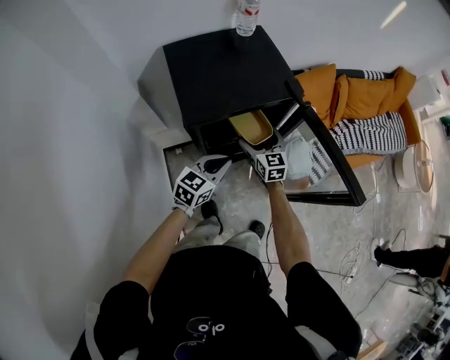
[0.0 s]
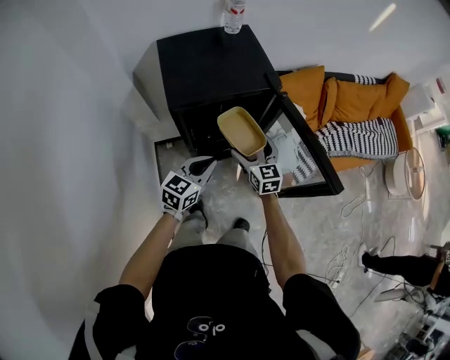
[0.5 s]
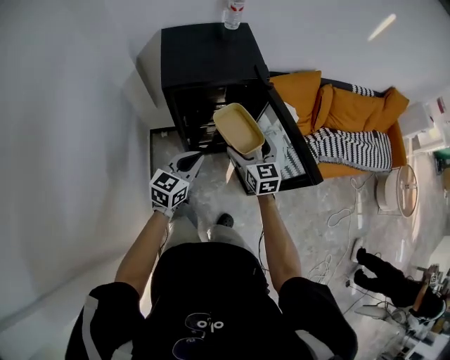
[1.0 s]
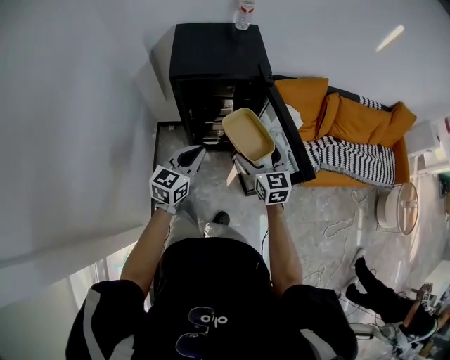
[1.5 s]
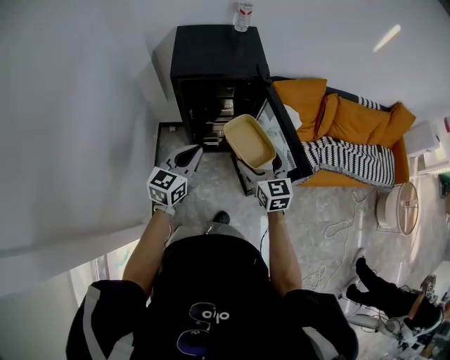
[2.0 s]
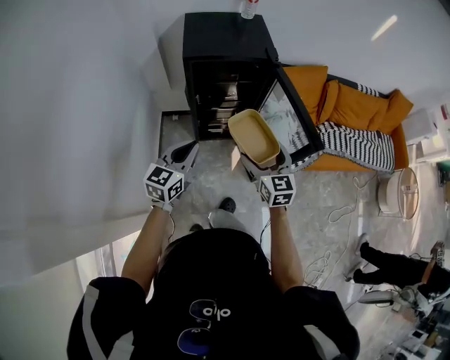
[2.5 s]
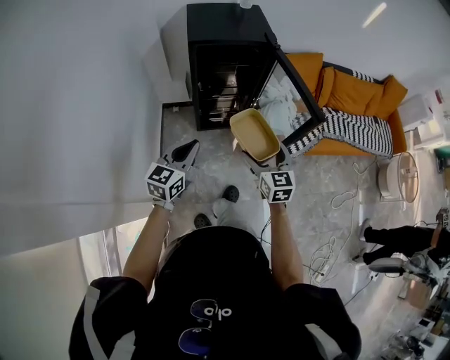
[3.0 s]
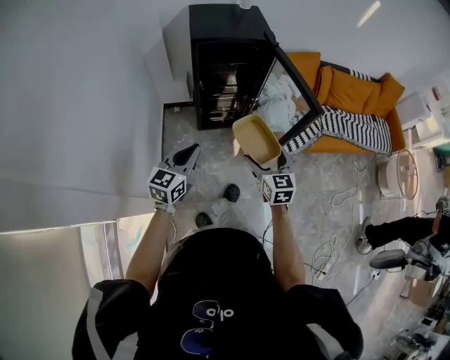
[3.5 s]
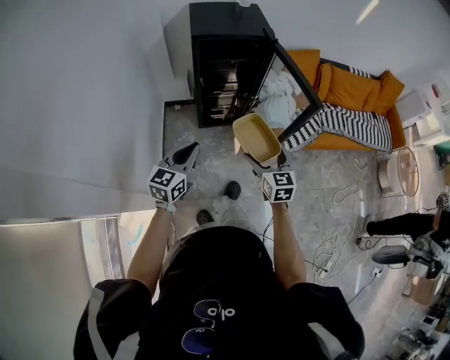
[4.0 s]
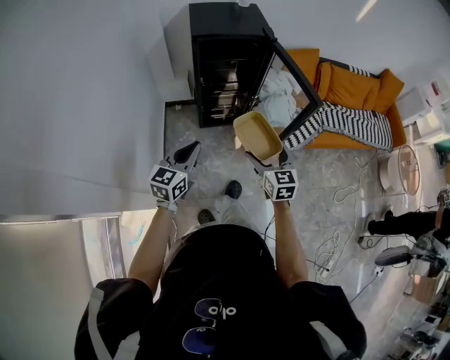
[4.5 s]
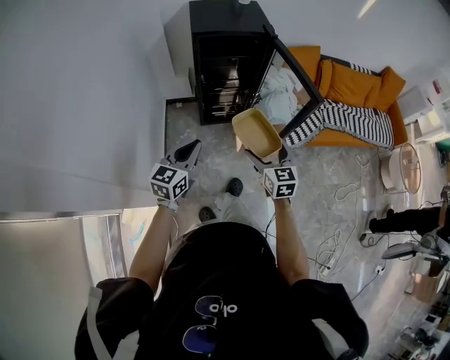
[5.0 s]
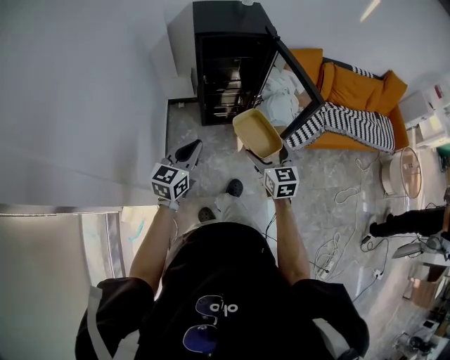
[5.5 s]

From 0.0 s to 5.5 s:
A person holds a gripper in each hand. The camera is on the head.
From 0.0 s to 2.0 s: The right gripper is displaced backward, to the right and upward by approximately 30 cm. The left gripper moves backward, upward and to the right, some 20 cm, and changes its angle by some 30 degrees.
From 2.0 s to 3.5 s: Both grippers travel together backward, about 20 cm.
From 3.5 s to 5.5 s: The grippers make only small movements.

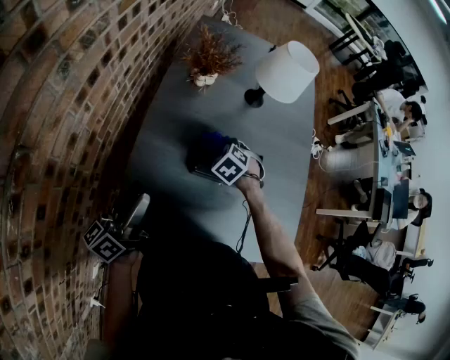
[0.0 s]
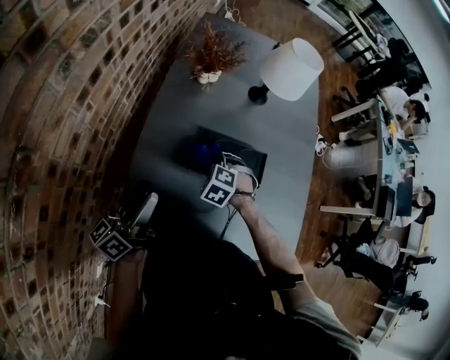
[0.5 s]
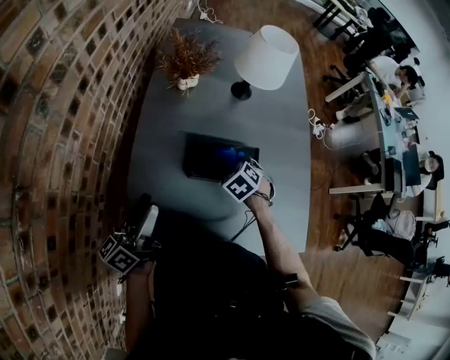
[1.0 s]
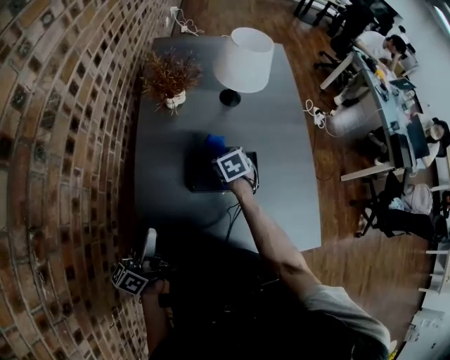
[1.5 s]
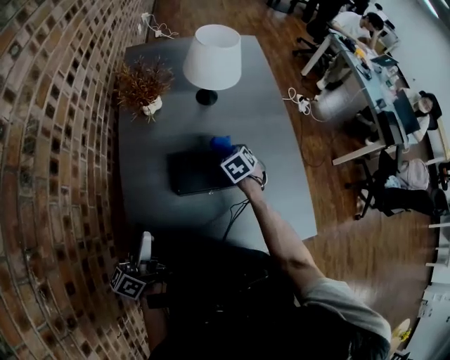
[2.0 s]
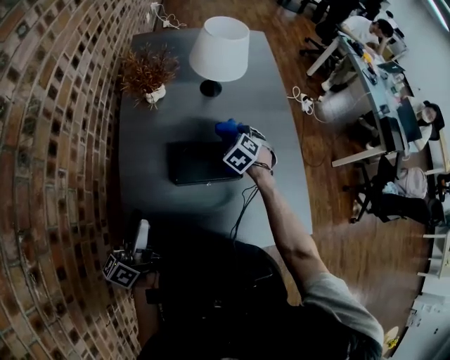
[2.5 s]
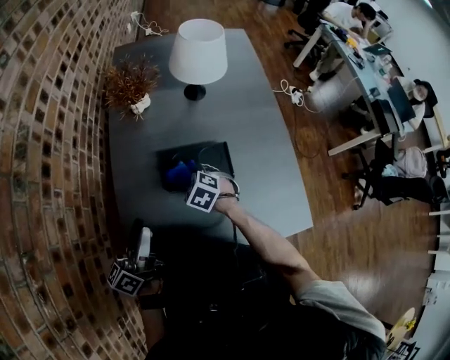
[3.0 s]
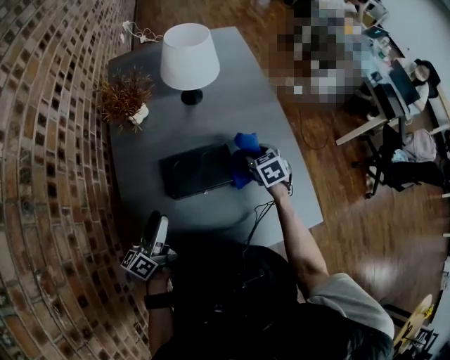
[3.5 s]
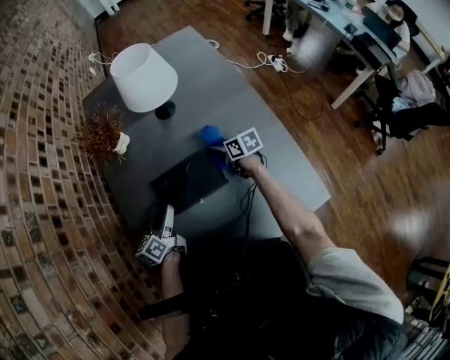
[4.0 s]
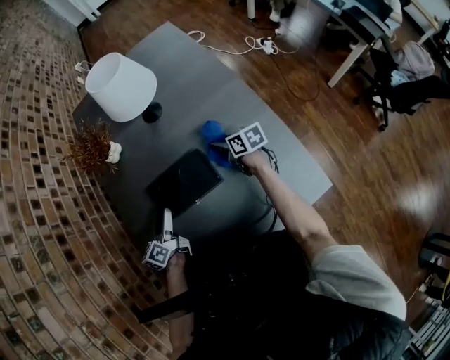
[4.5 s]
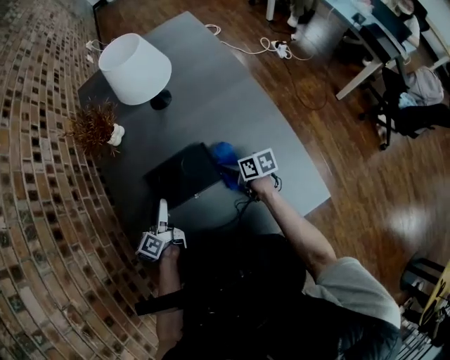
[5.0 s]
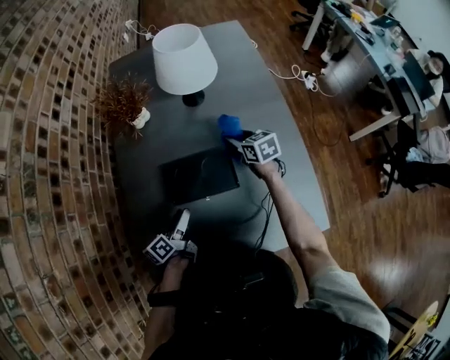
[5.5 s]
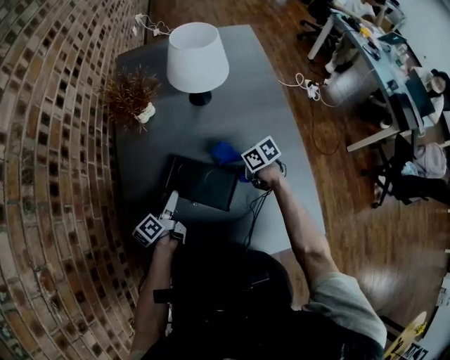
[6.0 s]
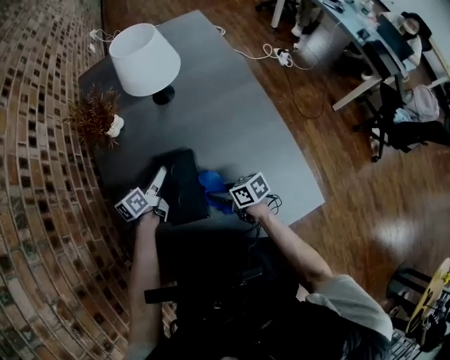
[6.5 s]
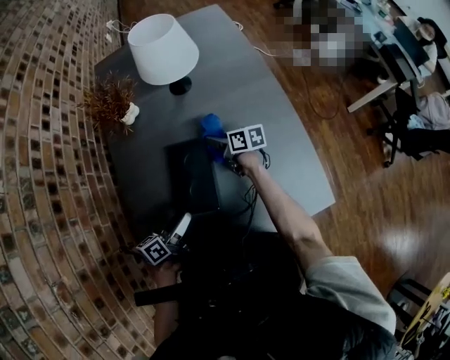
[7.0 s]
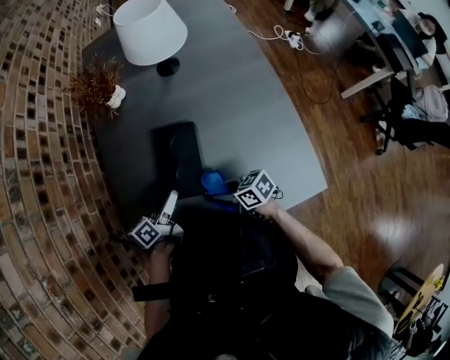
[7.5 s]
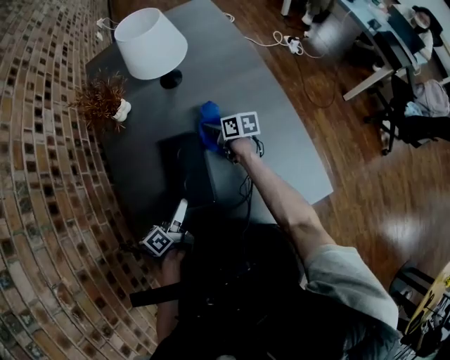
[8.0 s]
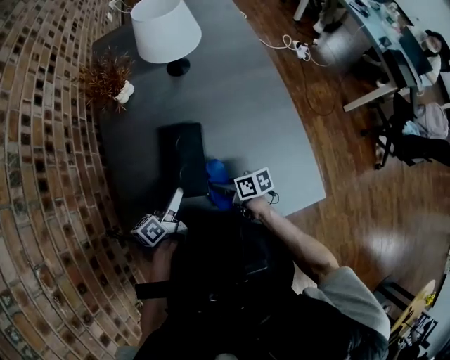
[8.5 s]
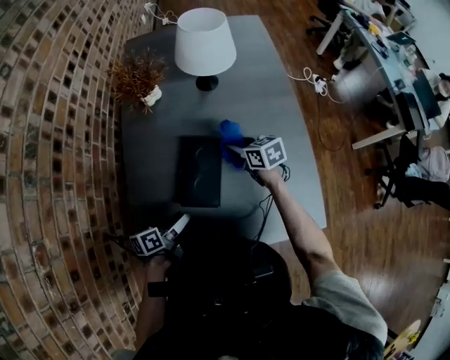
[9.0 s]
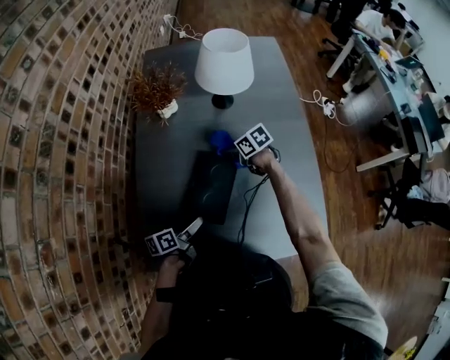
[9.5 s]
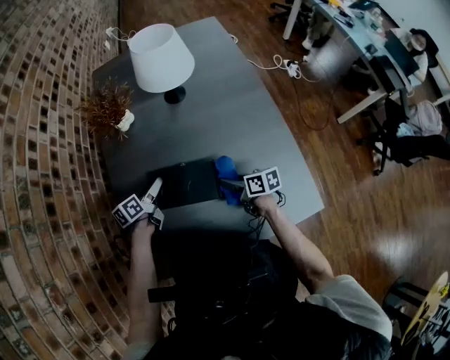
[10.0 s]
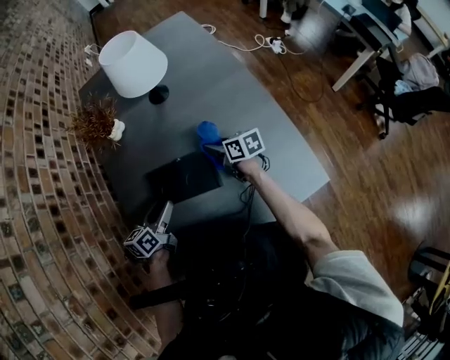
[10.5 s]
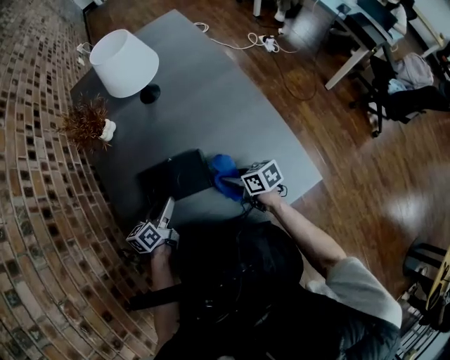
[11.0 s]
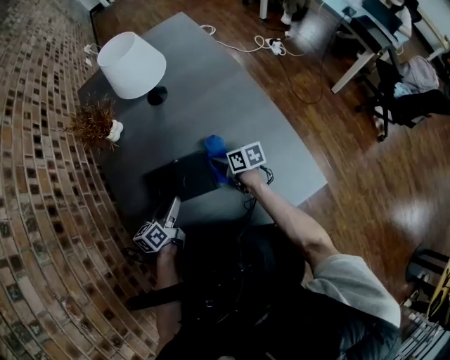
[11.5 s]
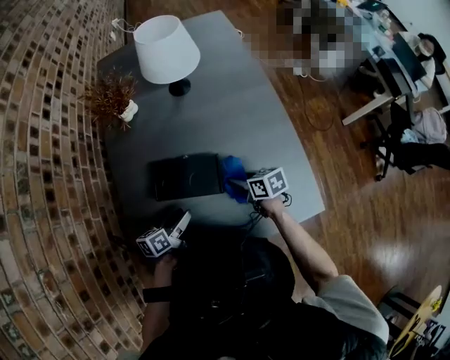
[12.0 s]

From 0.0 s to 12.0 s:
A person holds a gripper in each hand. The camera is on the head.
From 0.0 s to 2.0 s: The right gripper moves left and right over about 20 cm, changing direction 2 times, and turns by about 40 degrees.
From 2.0 s to 4.0 s: The right gripper moves left and right over approximately 25 cm, changing direction 2 times, and changes its angle by approximately 50 degrees, while the left gripper goes some 20 cm downward, forward and to the right, and rotates roughly 30 degrees.
From 4.0 s to 6.0 s: The left gripper swivels roughly 20 degrees, while the right gripper moves forward and backward over about 15 cm, changing direction 2 times, and rotates roughly 30 degrees.
From 6.0 s to 8.0 s: The right gripper swings forward and backward, approximately 25 cm each way, with 3 reversals, and swivels roughly 30 degrees, while the left gripper heads backward, covering approximately 10 cm.
From 8.0 s to 10.0 s: The left gripper shifts roughly 15 cm forward. The right gripper moves forward and backward over some 25 cm, changing direction 2 times.
From 10.0 s to 12.0 s: The right gripper goes forward and backward, some 15 cm each way, reversing 3 times. Meanwhile the left gripper shifts roughly 20 cm backward and to the right.

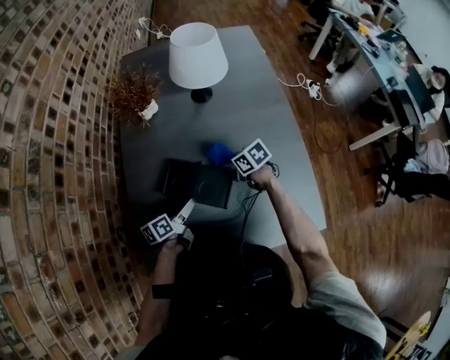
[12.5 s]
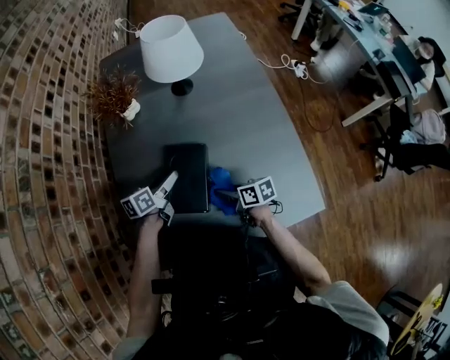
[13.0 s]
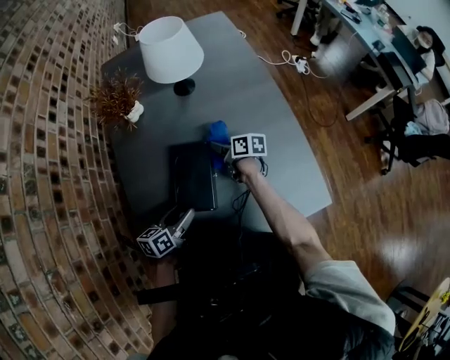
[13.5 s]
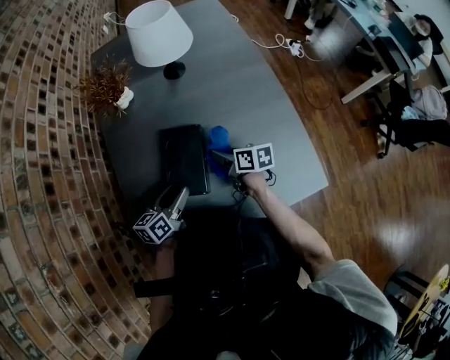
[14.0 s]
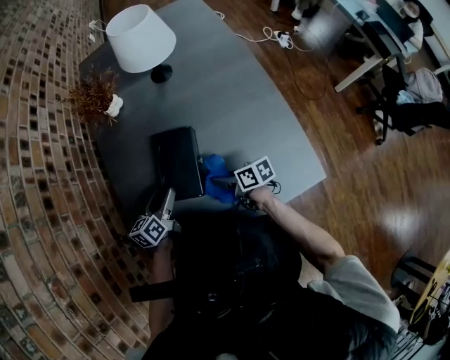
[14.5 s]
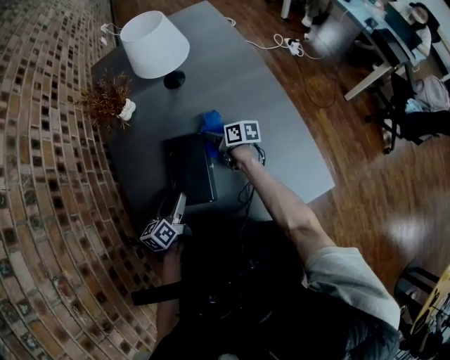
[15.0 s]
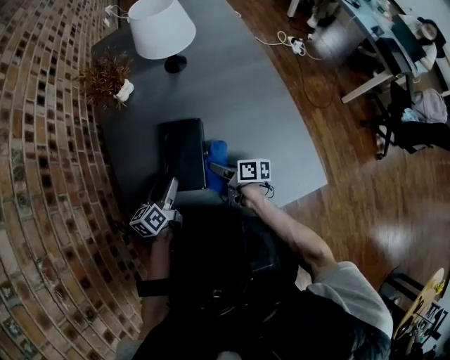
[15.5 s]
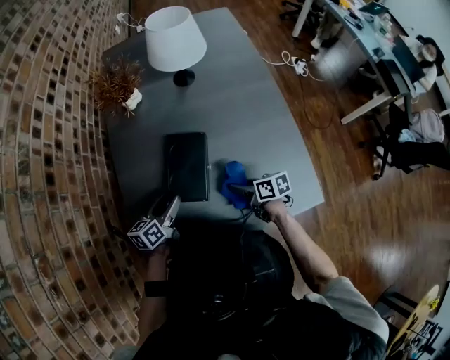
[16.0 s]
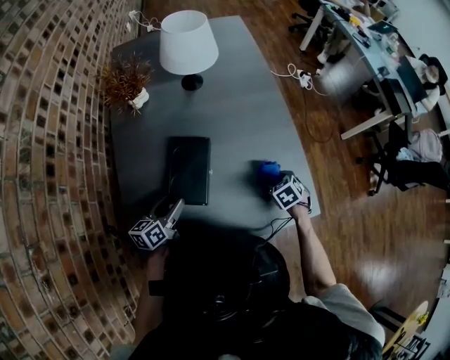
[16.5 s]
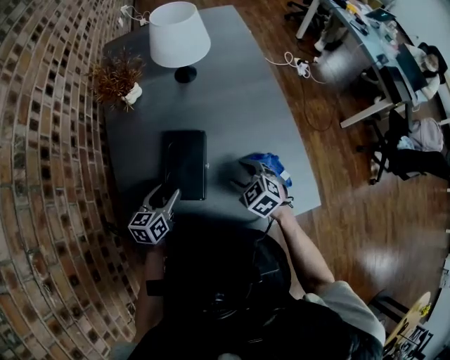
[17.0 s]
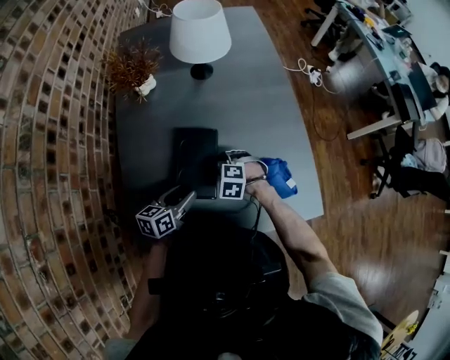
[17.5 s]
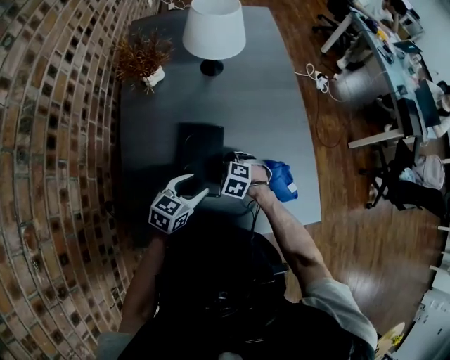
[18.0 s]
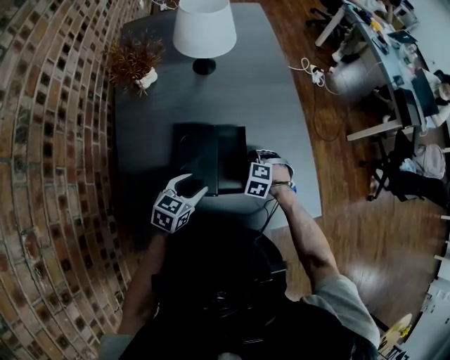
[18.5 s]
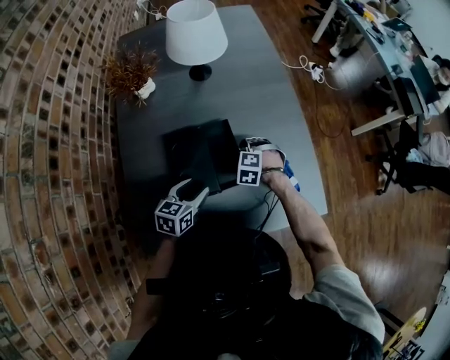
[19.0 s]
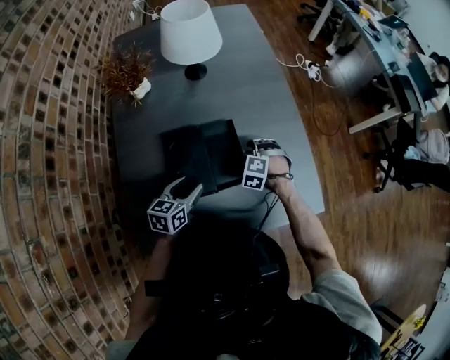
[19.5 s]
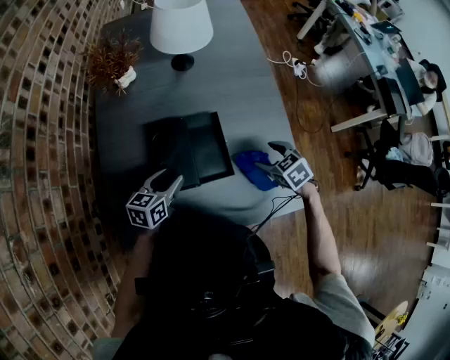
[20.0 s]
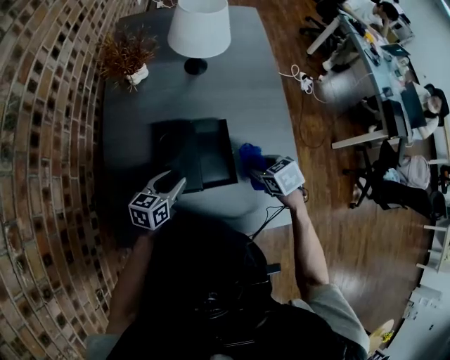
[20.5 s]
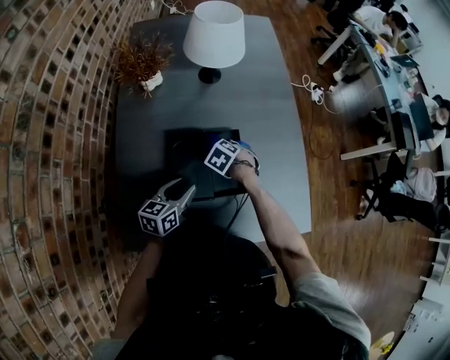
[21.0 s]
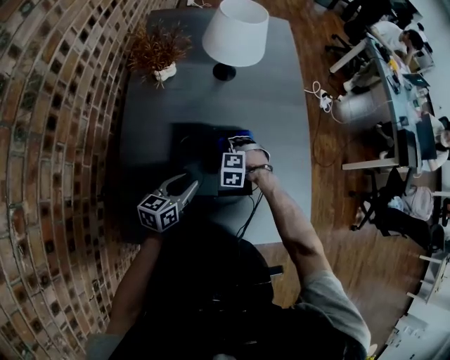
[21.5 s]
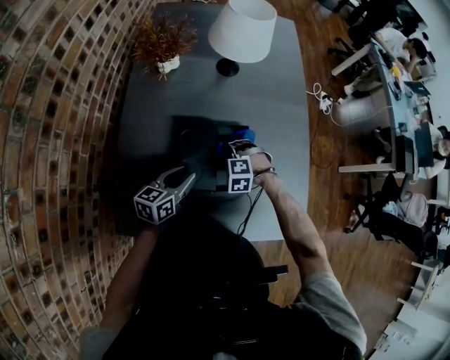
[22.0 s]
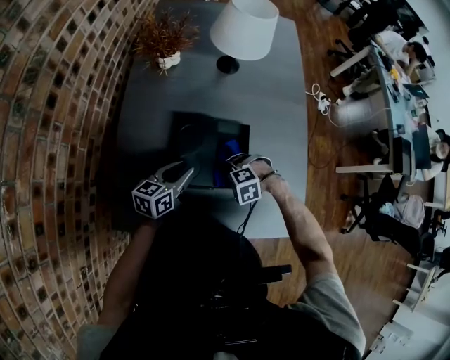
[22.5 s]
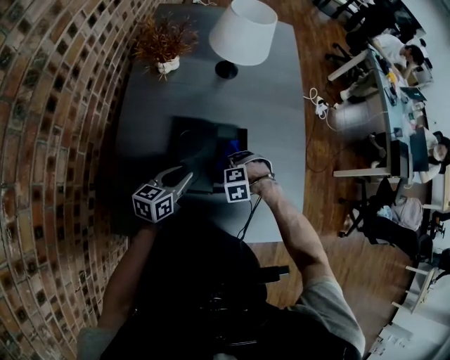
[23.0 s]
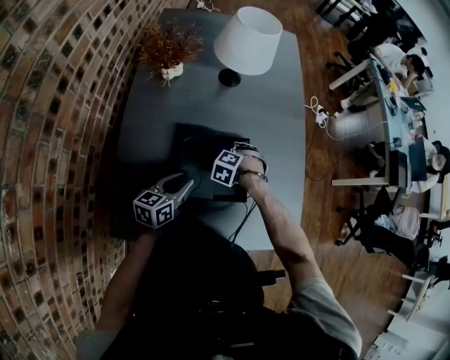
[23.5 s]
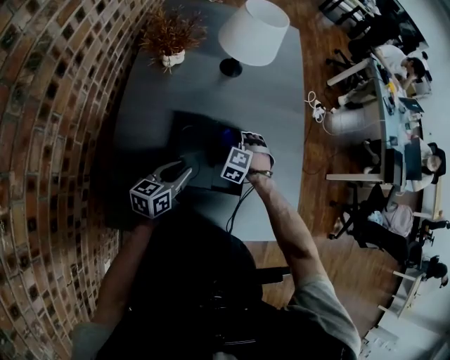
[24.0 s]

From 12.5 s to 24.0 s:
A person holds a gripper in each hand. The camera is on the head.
From 12.5 s to 14.5 s: The left gripper goes forward and backward, about 15 cm each way, reversing 2 times, and swivels some 20 degrees, while the right gripper goes forward and backward, approximately 20 cm each way, reversing 2 times, and turns by about 30 degrees.
From 14.5 s to 16.5 s: The right gripper shifts by approximately 20 cm, and points its fingers approximately 40 degrees further downward.
From 16.5 s to 18.5 s: The right gripper moves to the left, about 15 cm, and twists roughly 50 degrees counterclockwise, seen from behind, while the left gripper travels to the right by roughly 5 cm, and swivels roughly 30 degrees.
From 18.5 s to 20.0 s: The right gripper goes roughly 15 cm to the right and upward, rolls clockwise, seen from behind, by approximately 40 degrees, and opens up.
From 20.0 s to 22.0 s: The right gripper shifts by about 25 cm, rotates around the line of its fingers by roughly 70 degrees, counterclockwise from behind, and closes its fingers.
From 22.0 s to 24.0 s: The right gripper ends up some 10 cm from where it was, and swivels approximately 20 degrees.
